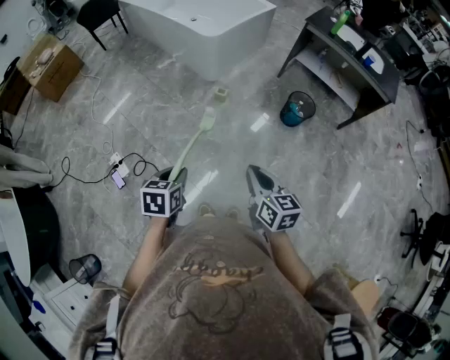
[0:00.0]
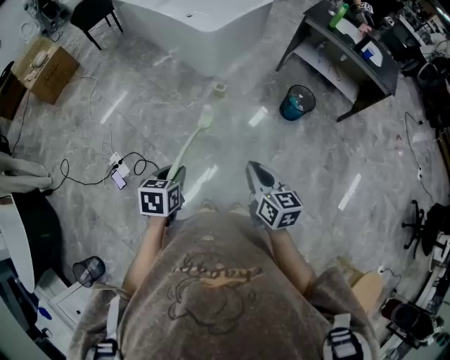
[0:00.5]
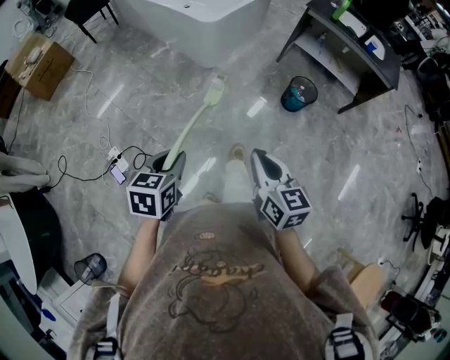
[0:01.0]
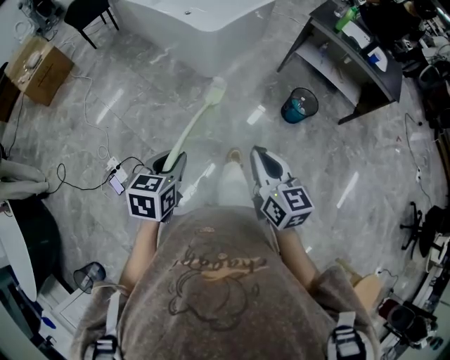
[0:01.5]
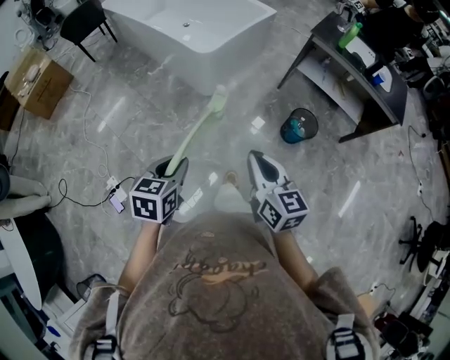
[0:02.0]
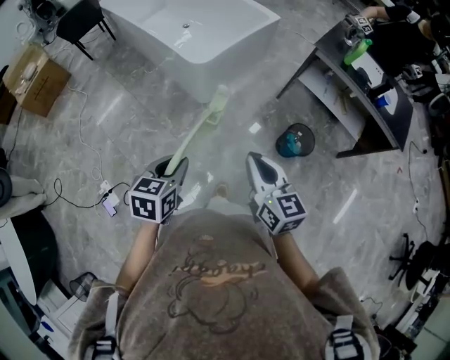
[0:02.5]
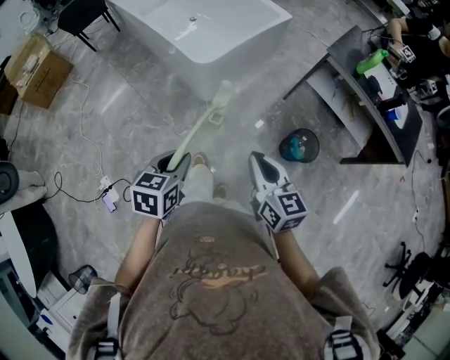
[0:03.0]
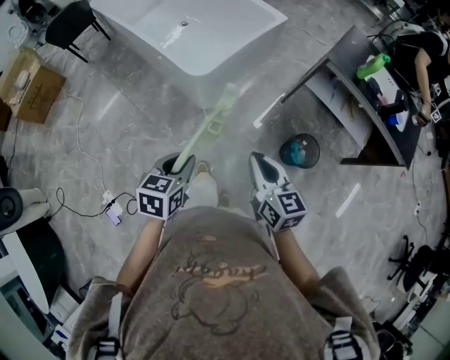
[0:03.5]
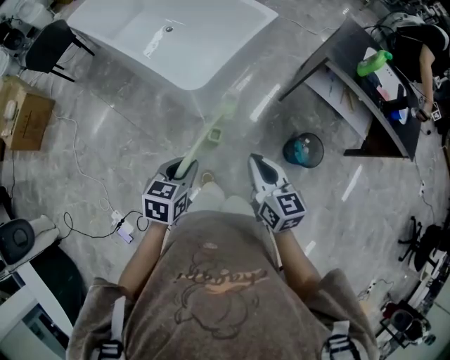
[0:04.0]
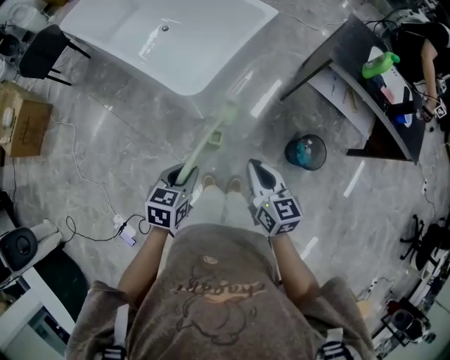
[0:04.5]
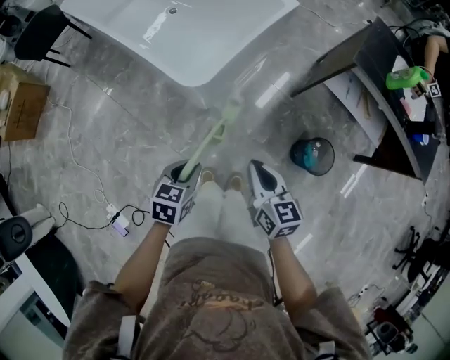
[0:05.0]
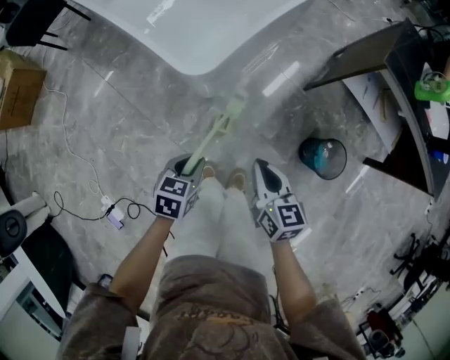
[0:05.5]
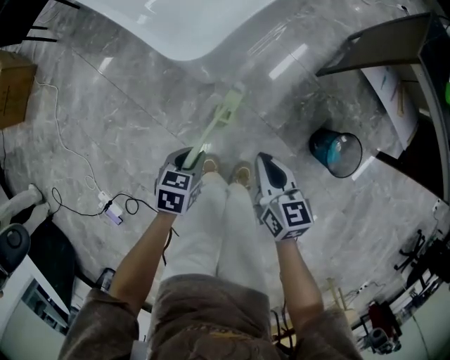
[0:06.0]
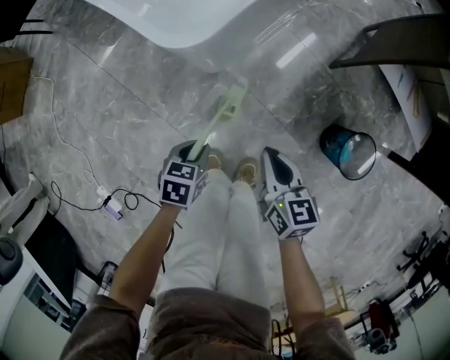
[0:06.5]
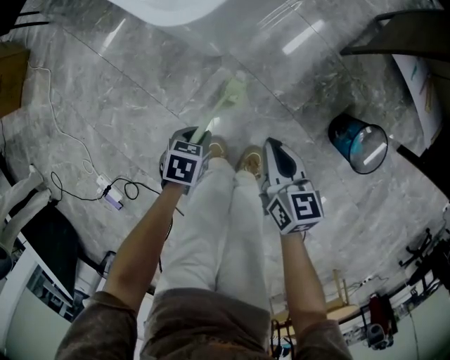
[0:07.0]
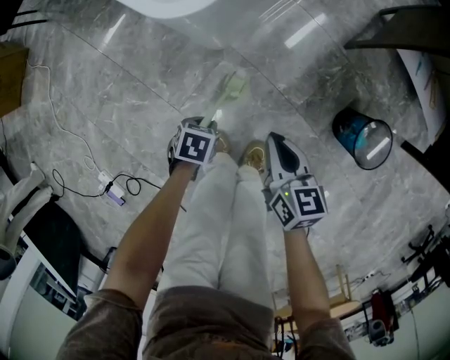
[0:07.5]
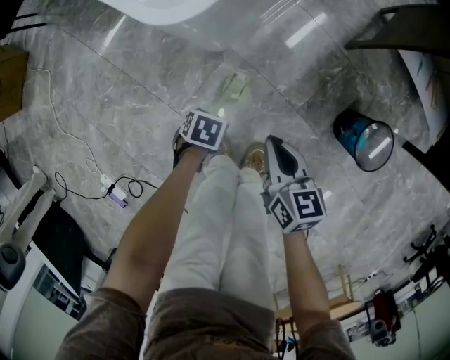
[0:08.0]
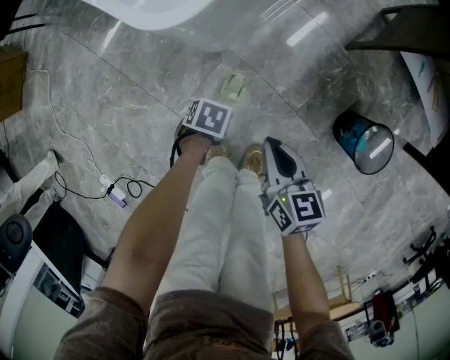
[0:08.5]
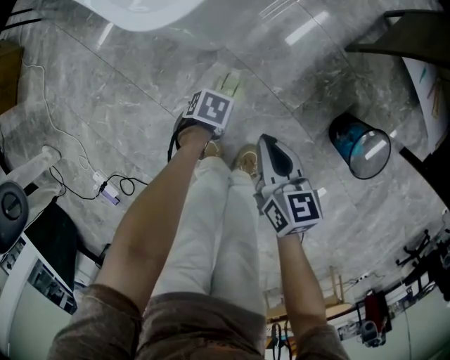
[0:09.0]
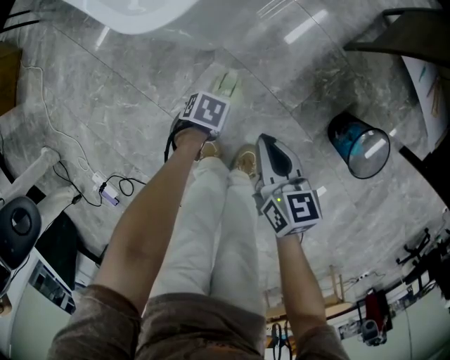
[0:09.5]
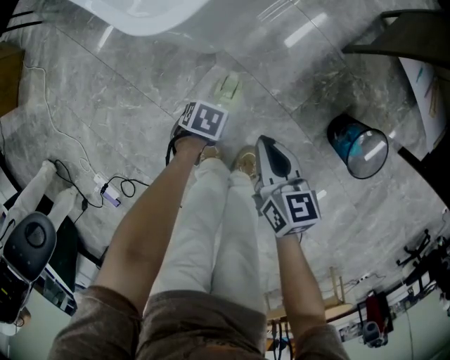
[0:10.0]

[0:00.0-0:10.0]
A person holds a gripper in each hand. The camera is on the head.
0:00.0 to 0:02.0: Both grippers travel together forward, about 25 cm.
0:02.0 to 0:04.0: The grippers both shift forward by some 35 cm.
0:04.0 to 0:06.0: Both grippers travel together downward, approximately 30 cm.
0:06.0 to 0:08.0: The right gripper travels downward by roughly 10 cm. Meanwhile the left gripper heads downward, covering some 20 cm, and changes its angle by approximately 30 degrees.
0:08.0 to 0:10.0: The left gripper opens up.

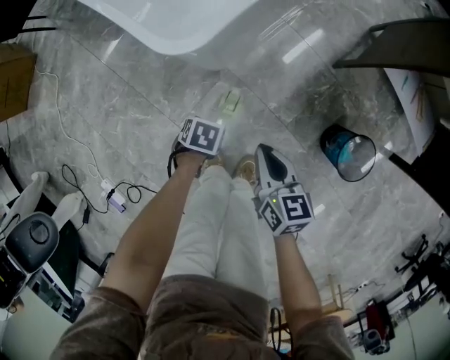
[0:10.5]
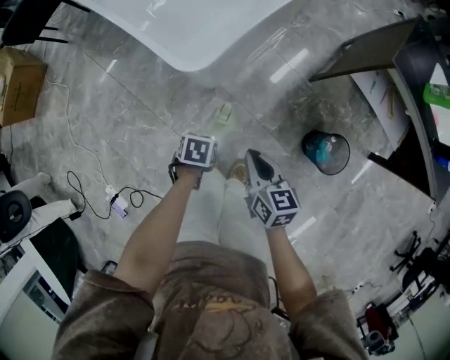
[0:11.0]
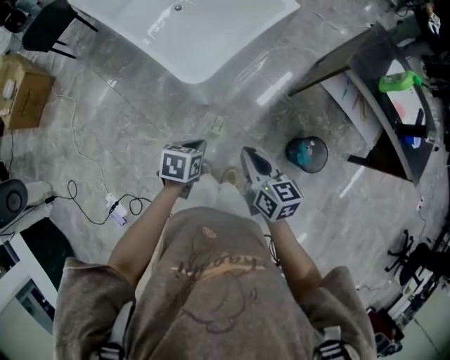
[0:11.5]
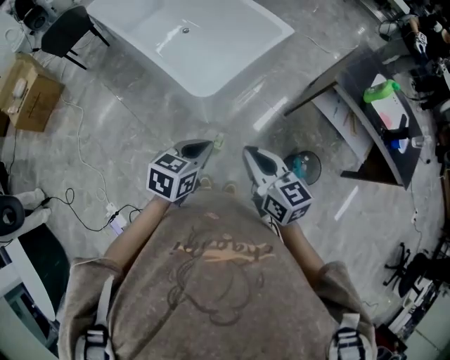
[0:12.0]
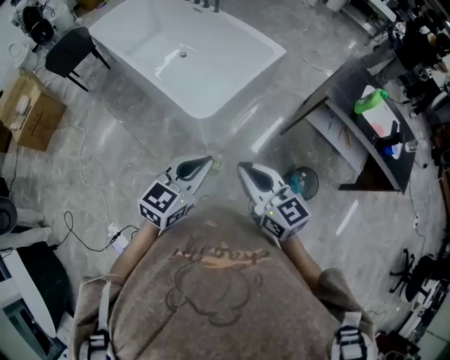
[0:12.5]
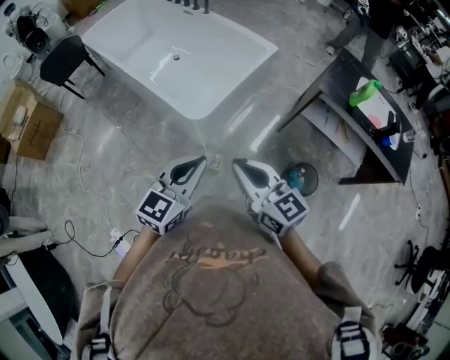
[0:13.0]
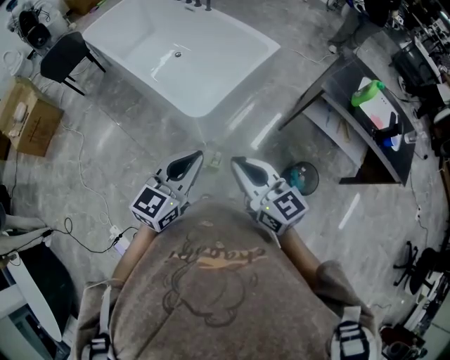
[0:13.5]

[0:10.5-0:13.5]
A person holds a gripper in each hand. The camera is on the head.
0:10.5 to 0:12.0: The grippers both shift upward by some 50 cm. The left gripper tips its fingers upward by roughly 40 degrees, and closes. The right gripper changes its angle by roughly 20 degrees.
0:12.0 to 0:13.5: The left gripper heads upward, covering roughly 10 cm, and turns by roughly 30 degrees. Meanwhile the right gripper ends up roughly 5 cm from where it was.

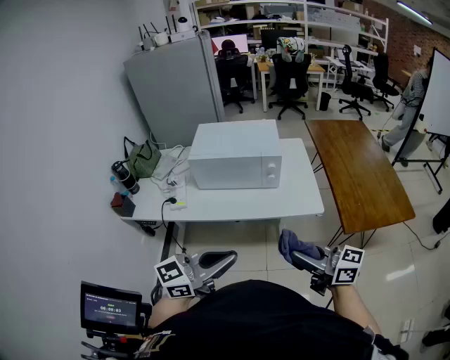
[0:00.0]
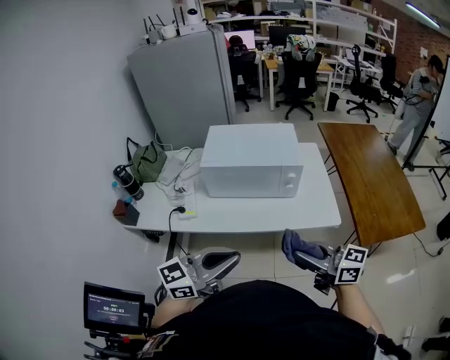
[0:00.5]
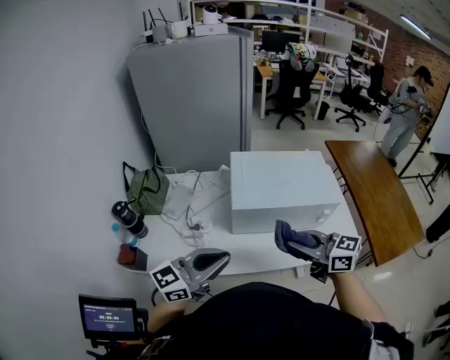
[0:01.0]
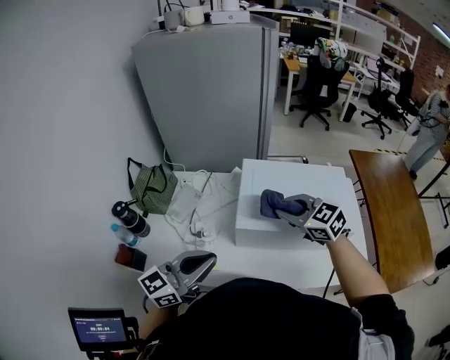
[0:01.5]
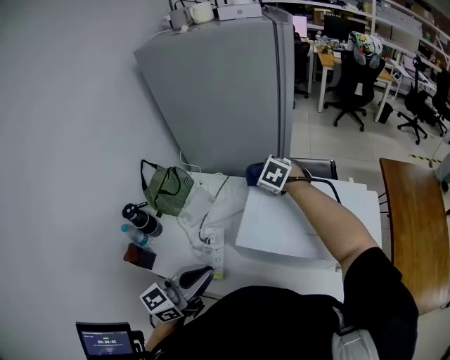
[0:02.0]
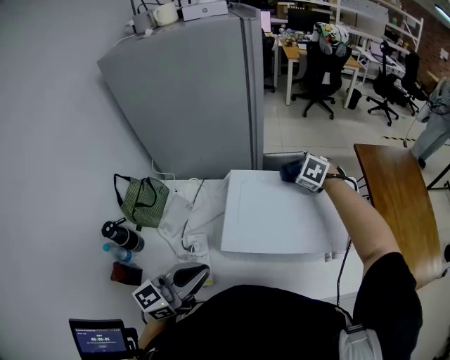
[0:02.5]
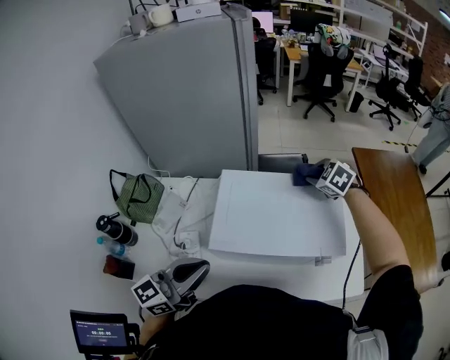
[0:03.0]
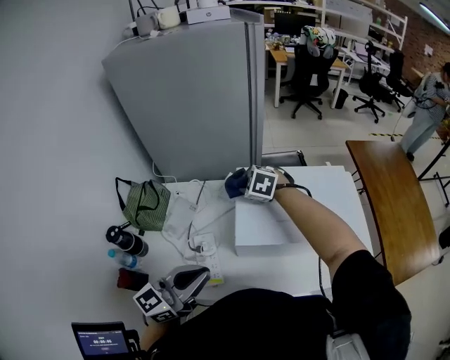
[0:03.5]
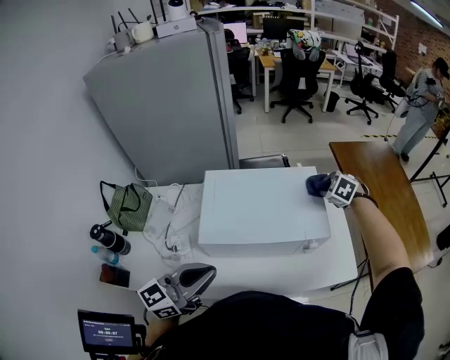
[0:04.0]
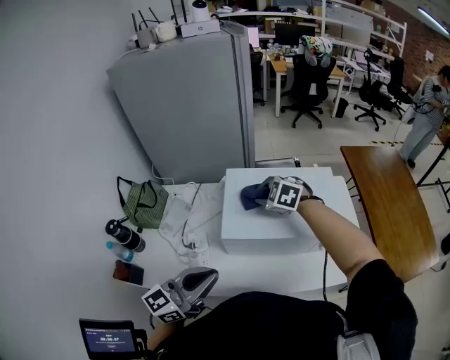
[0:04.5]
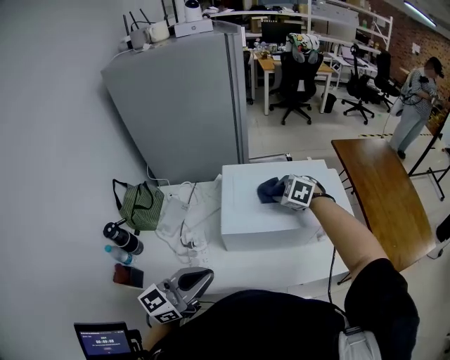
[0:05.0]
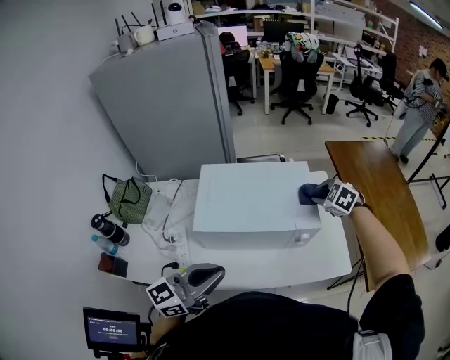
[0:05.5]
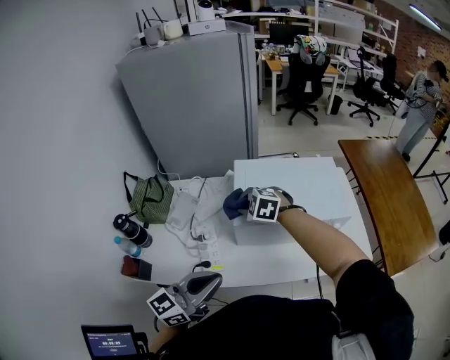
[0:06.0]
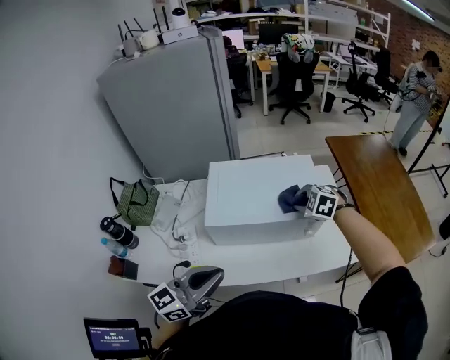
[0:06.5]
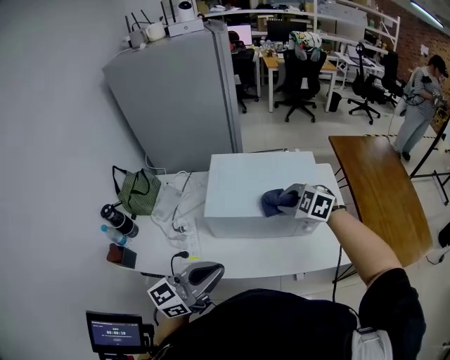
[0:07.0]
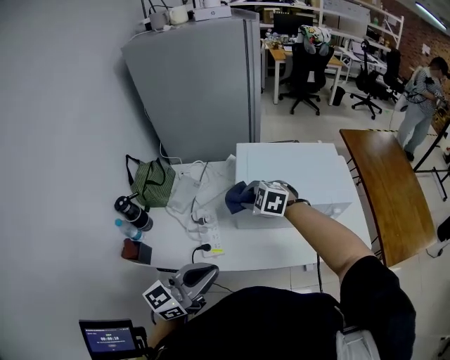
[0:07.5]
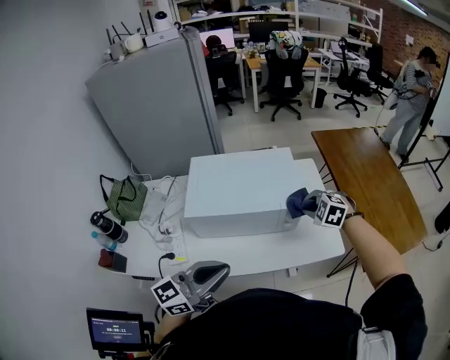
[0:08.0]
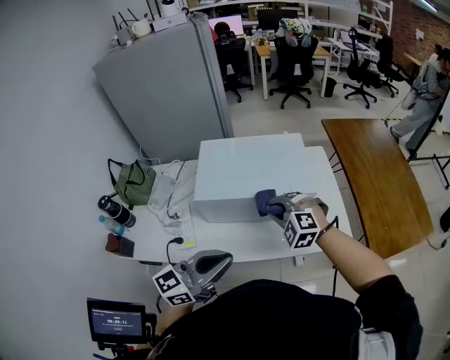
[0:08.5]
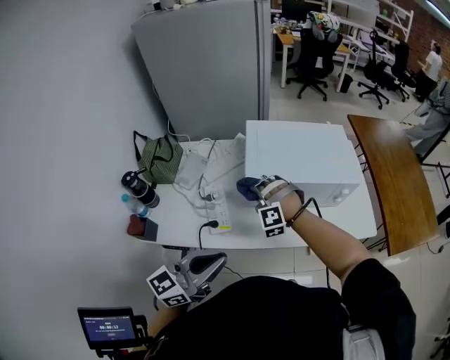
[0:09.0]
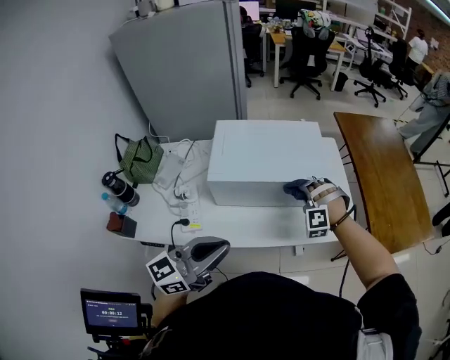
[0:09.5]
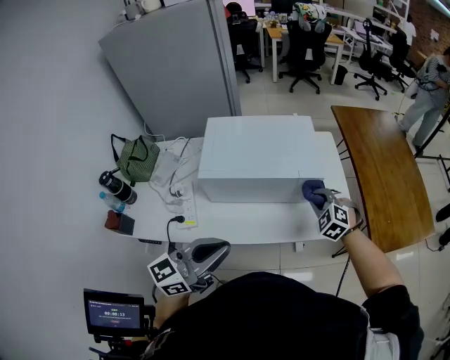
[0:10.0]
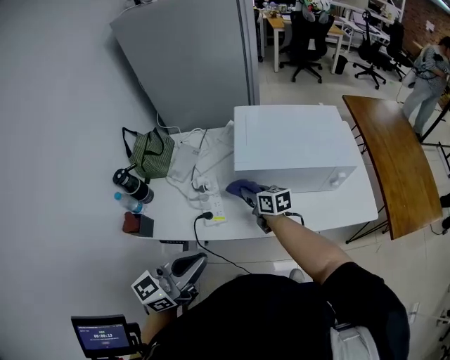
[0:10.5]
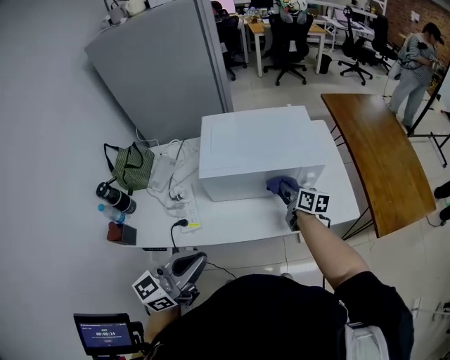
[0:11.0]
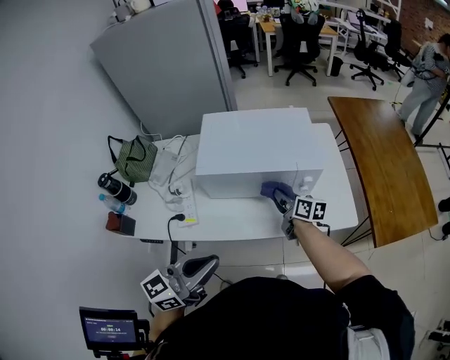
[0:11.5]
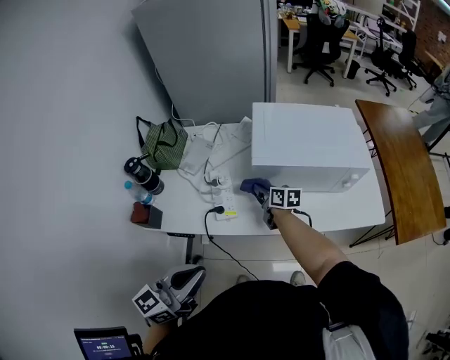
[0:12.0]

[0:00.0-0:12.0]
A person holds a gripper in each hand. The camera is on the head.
0:00.0 to 0:02.0: The two grippers travel together, forward and to the left, some 60 cm. The right gripper points its fingers approximately 60 degrees further downward; the left gripper swivels some 30 degrees.
0:02.0 to 0:04.0: The left gripper moves approximately 10 cm, and turns by approximately 20 degrees. The right gripper changes place by some 40 cm, and turns by approximately 20 degrees.
0:04.0 to 0:06.0: The left gripper swings left and right, approximately 15 cm each way, with 2 reversals; the right gripper swings left and right, some 40 cm each way, with 2 reversals, and swivels roughly 30 degrees.
0:06.0 to 0:08.0: The left gripper goes left and right, approximately 20 cm each way, reversing 2 times. The right gripper swings left and right, roughly 40 cm each way, with 2 reversals.
0:08.0 to 0:10.0: The right gripper heads backward, covering roughly 5 cm, and goes to the left and returns, roughly 40 cm each way; the left gripper moves about 20 cm to the left and comes back.
0:10.0 to 0:12.0: The right gripper swings left and right, some 35 cm each way, with 2 reversals, and twists about 80 degrees clockwise, seen from behind. The left gripper moves left and right over approximately 25 cm, changing direction 2 times.

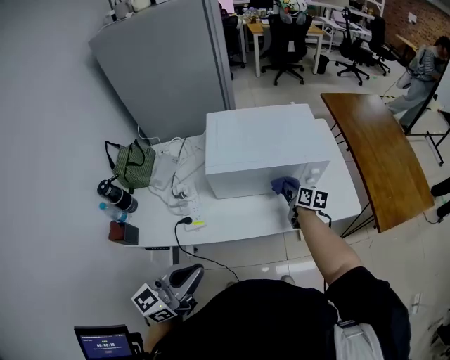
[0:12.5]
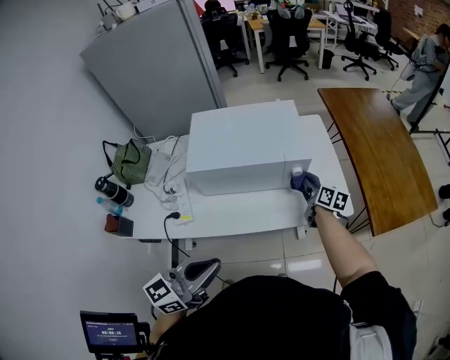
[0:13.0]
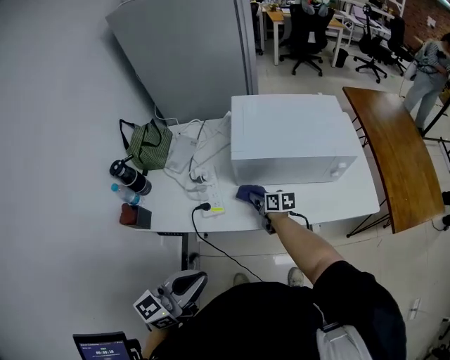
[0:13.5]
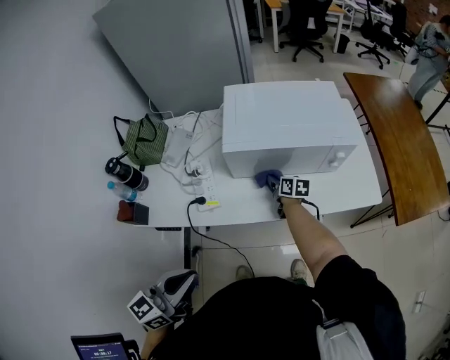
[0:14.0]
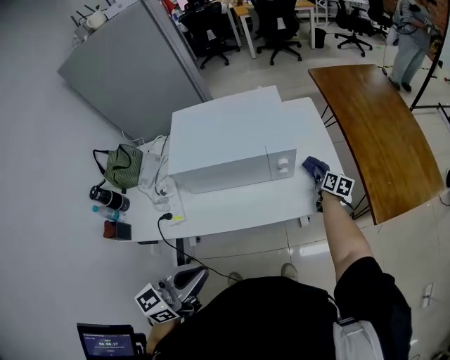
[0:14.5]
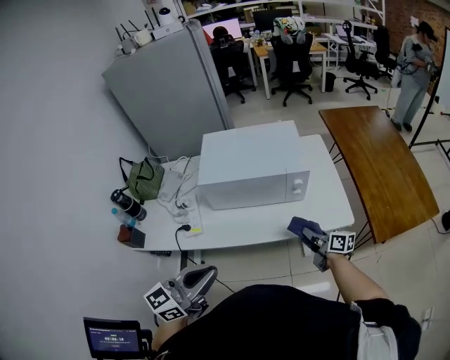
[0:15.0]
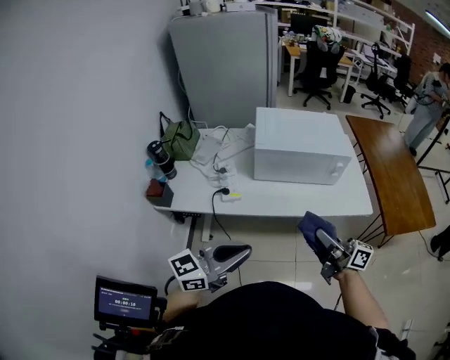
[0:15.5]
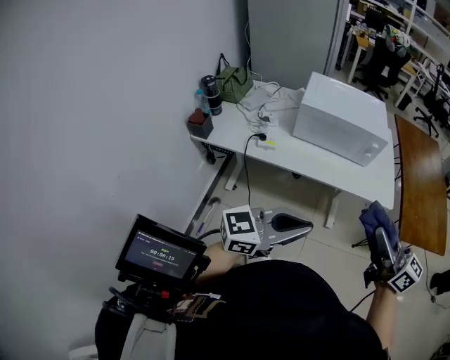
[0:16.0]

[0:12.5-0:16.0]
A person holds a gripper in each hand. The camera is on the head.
0:12.5 to 0:14.5: The right gripper goes left and right, about 50 cm each way, reversing 2 times. Meanwhile the left gripper swings left and right, approximately 20 cm each way, with 2 reversals.
0:14.5 to 0:16.0: The left gripper heads backward, covering approximately 20 cm, while the right gripper shifts approximately 60 cm backward and upward, and tilts its fingers about 40 degrees upward.
